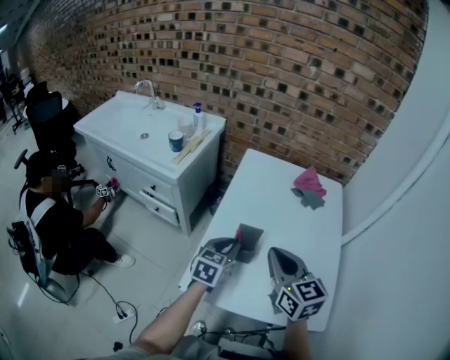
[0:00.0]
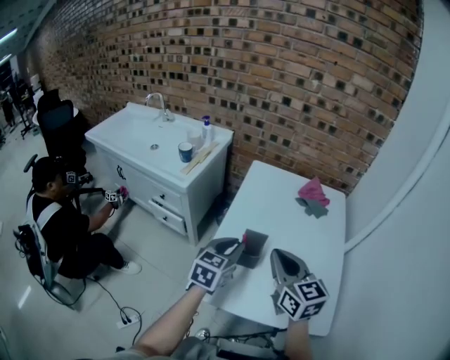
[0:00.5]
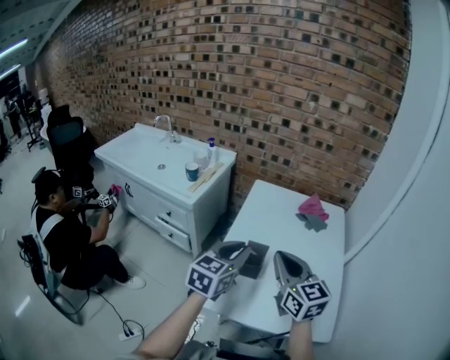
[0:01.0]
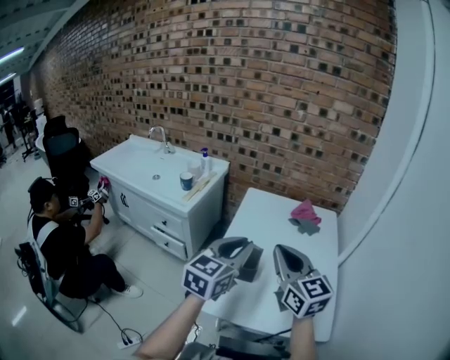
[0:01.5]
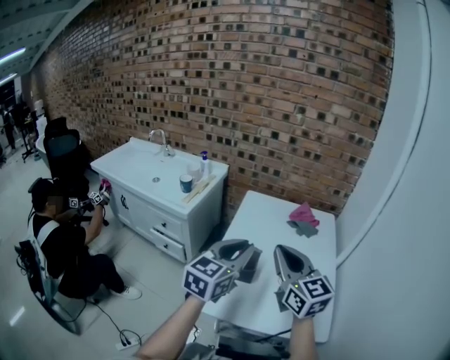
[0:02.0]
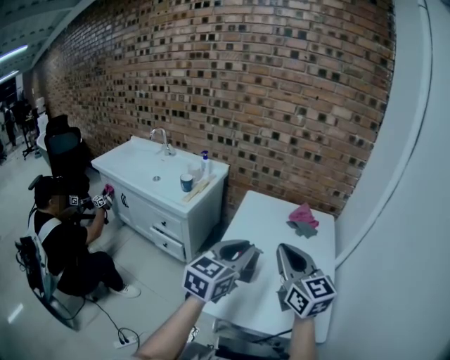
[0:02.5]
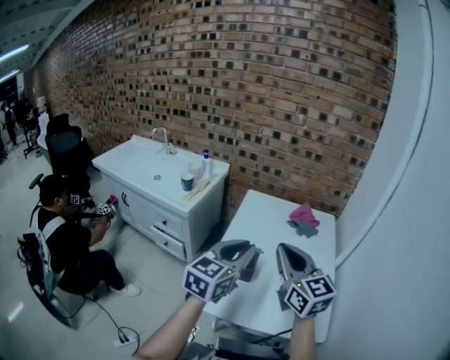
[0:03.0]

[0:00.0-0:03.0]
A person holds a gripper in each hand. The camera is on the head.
0:00.0 to 0:01.5: The left gripper goes approximately 20 cm upward, and turns by some 20 degrees. Meanwhile the right gripper moves upward, roughly 10 cm.
0:01.5 to 0:03.0: The grippers move only a little.

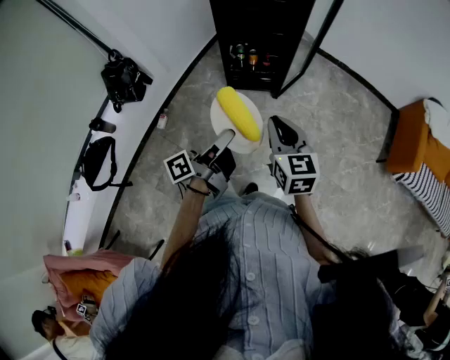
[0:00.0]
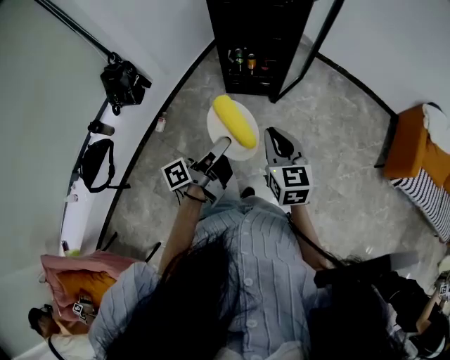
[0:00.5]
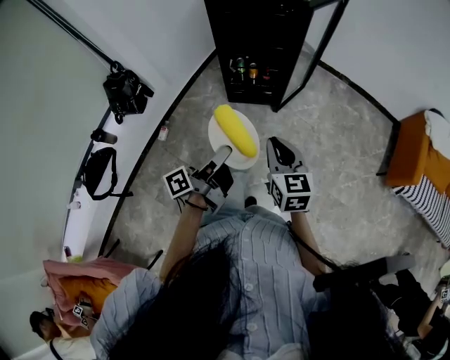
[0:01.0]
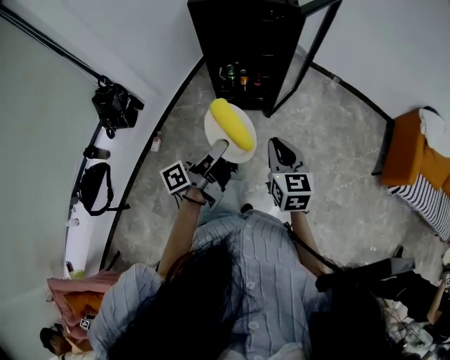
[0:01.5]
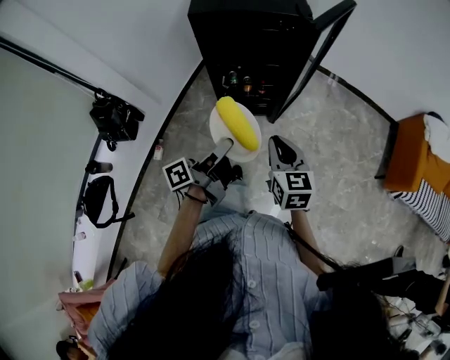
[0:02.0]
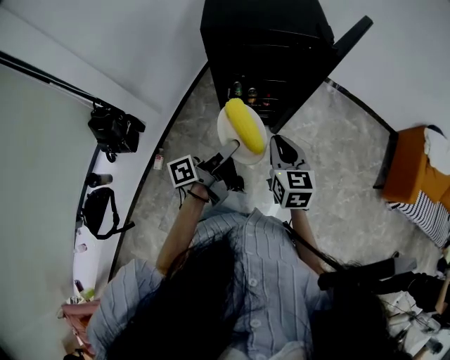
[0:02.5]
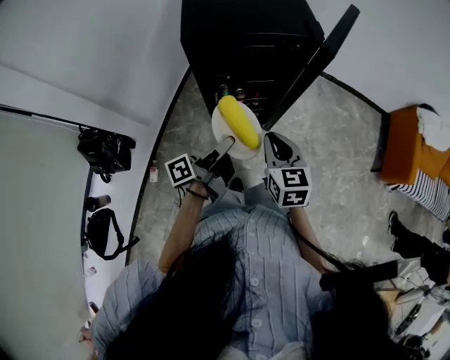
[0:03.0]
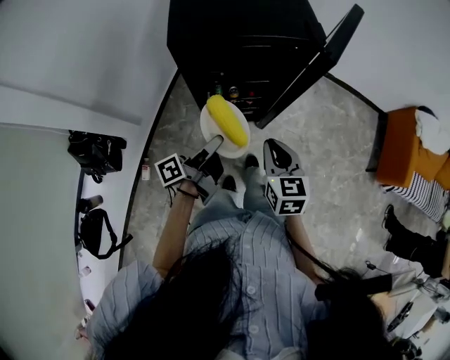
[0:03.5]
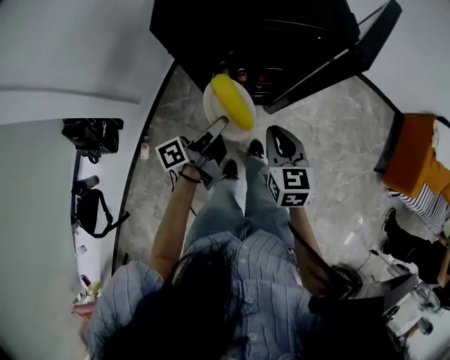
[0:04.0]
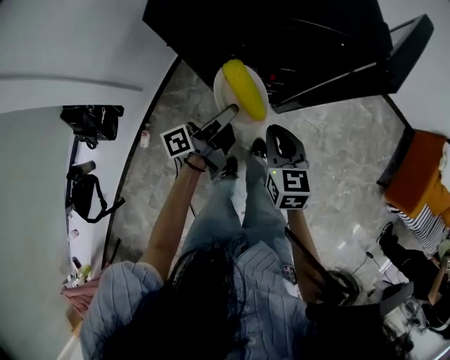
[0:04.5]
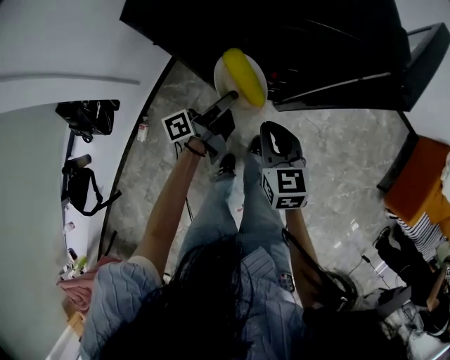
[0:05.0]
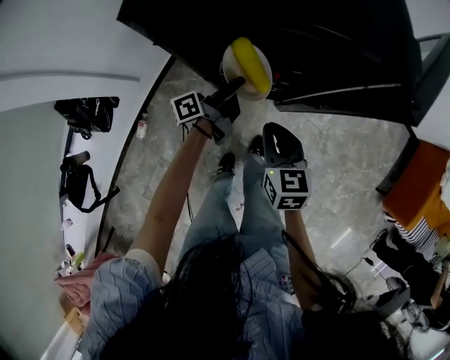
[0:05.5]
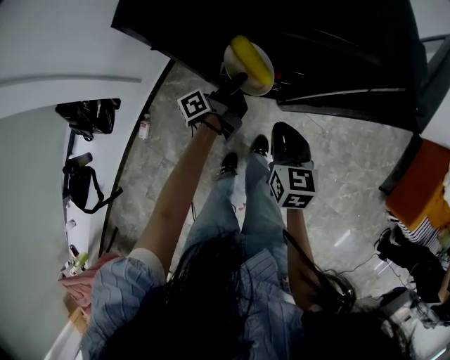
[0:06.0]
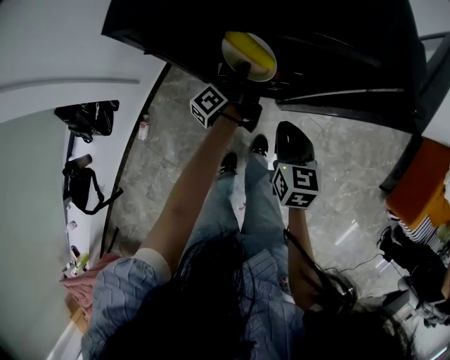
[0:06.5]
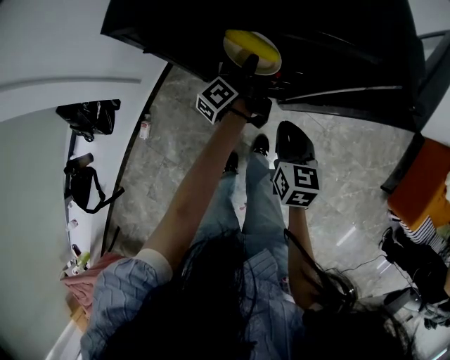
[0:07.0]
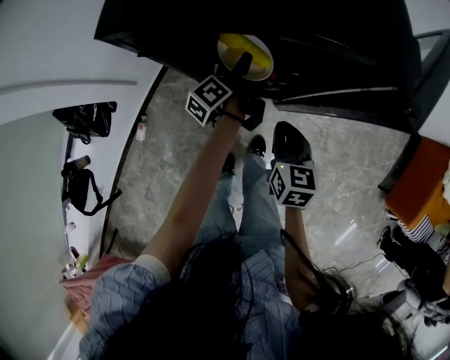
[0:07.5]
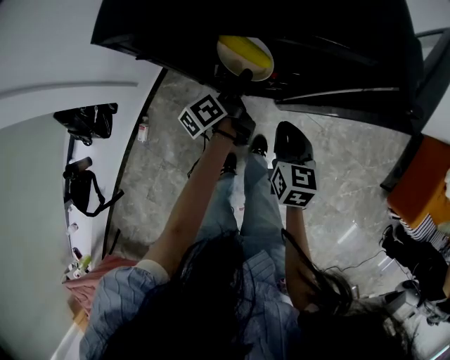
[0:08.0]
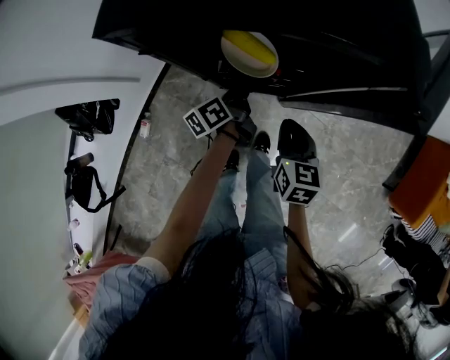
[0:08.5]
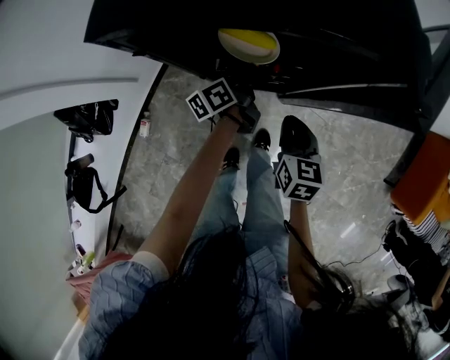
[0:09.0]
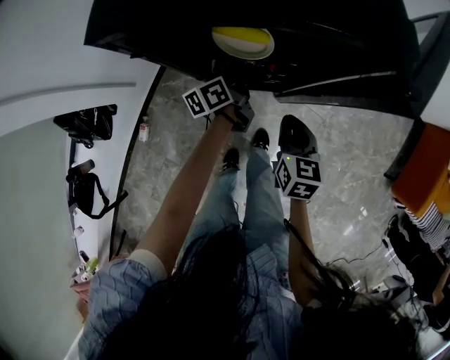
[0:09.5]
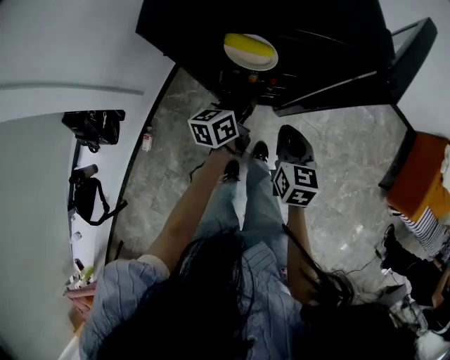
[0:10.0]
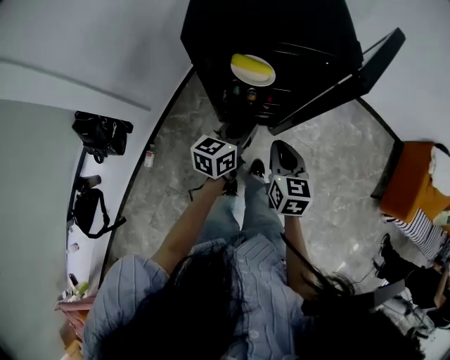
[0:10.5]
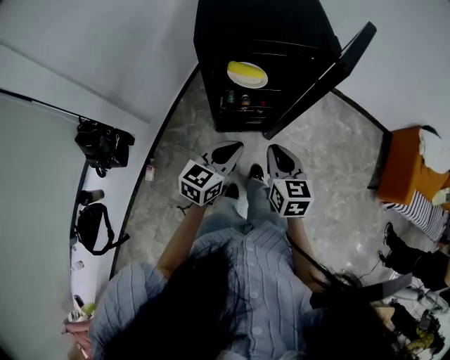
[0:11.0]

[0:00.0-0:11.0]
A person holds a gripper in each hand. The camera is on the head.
0:00.0 to 0:02.0: The grippers both shift forward by roughly 20 cm.
0:02.0 to 0:03.5: The left gripper moves forward and to the left, approximately 20 cm; the right gripper travels forward by some 15 cm.
0:03.5 to 0:05.5: The left gripper moves forward and downward, roughly 25 cm. The right gripper heads downward and forward, covering about 20 cm.
0:05.5 to 0:07.5: The right gripper ends up roughly 5 cm from where it was, while the left gripper goes roughly 5 cm forward, changes its angle by roughly 30 degrees, and opens its fingers.
0:07.5 to 0:09.0: The left gripper swivels approximately 20 degrees, and closes its fingers.
0:09.0 to 0:11.0: The left gripper moves backward and upward, some 35 cm, and rotates around the line of its fingers by roughly 60 degrees, clockwise from behind, while the right gripper travels upward and backward by roughly 25 cm.

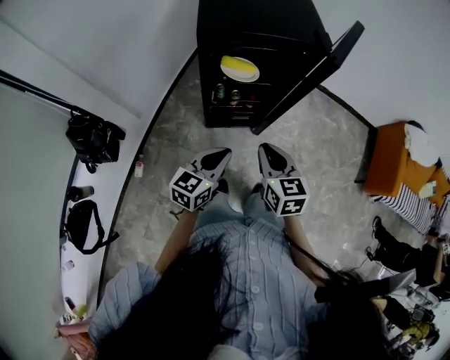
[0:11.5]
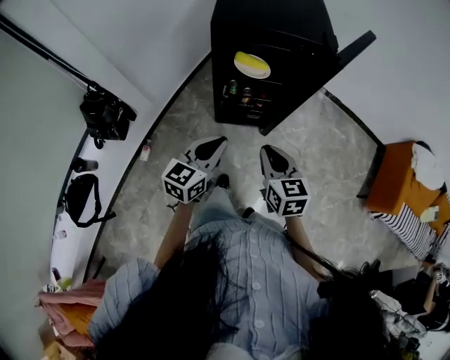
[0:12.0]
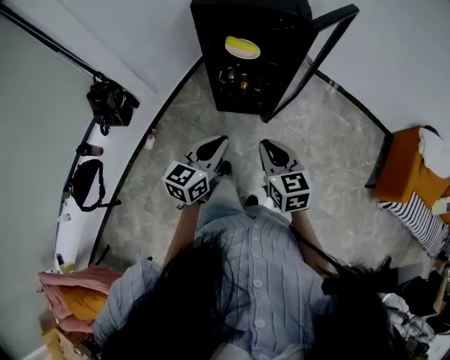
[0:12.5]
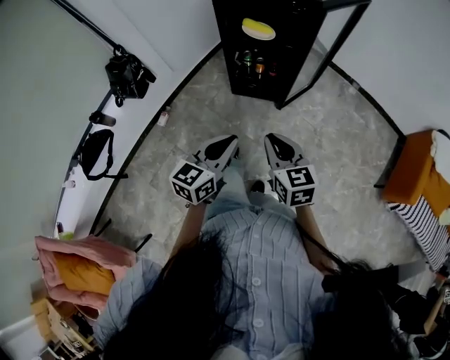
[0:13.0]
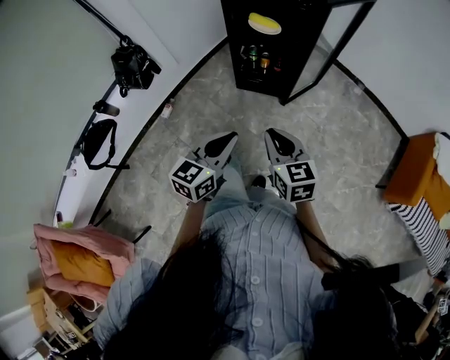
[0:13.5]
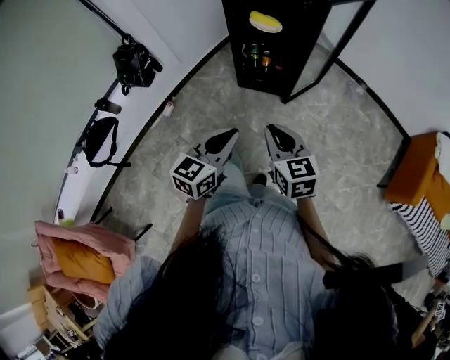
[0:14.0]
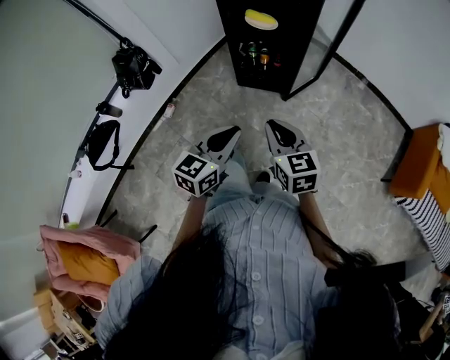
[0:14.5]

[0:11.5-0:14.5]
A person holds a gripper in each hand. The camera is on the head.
0:11.5 to 0:13.0: The grippers both shift backward and to the right by some 25 cm. The right gripper turns by about 20 degrees.
0:13.0 to 0:14.5: There are only small adjustments of the grippers.

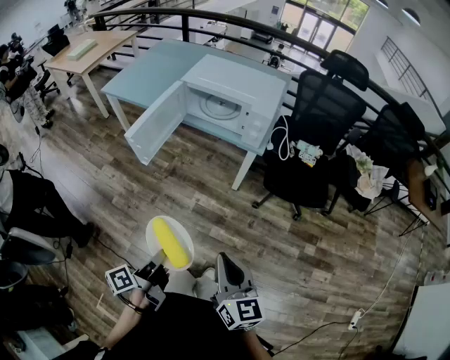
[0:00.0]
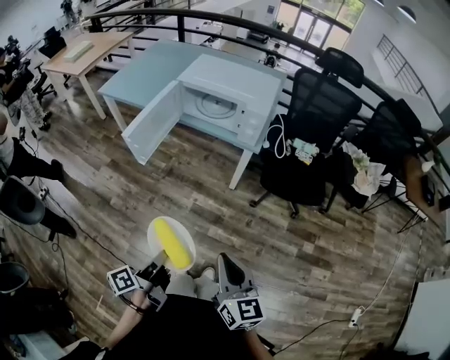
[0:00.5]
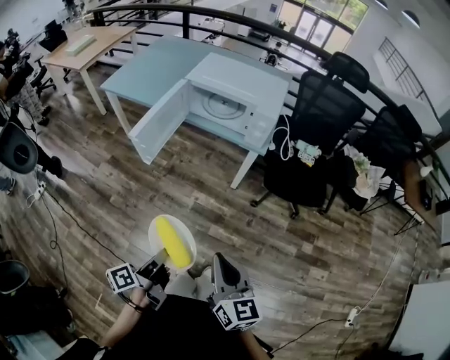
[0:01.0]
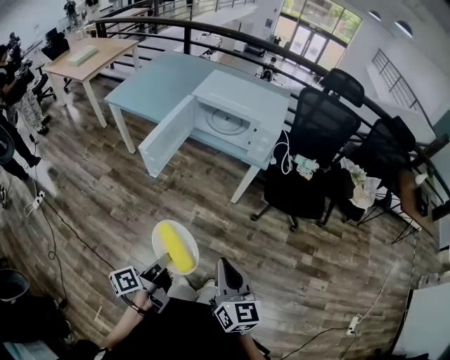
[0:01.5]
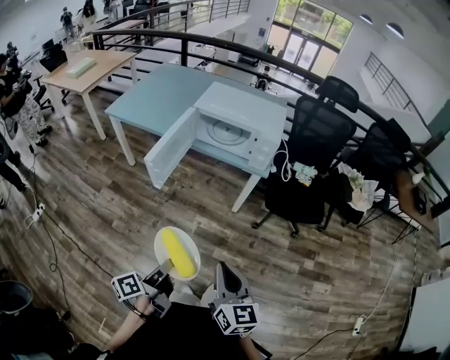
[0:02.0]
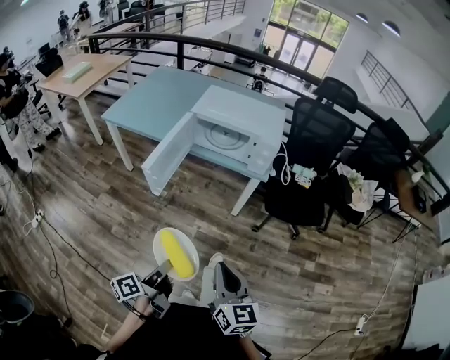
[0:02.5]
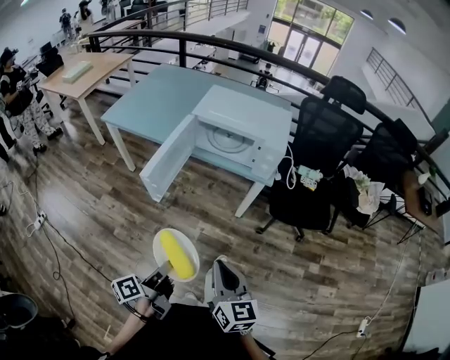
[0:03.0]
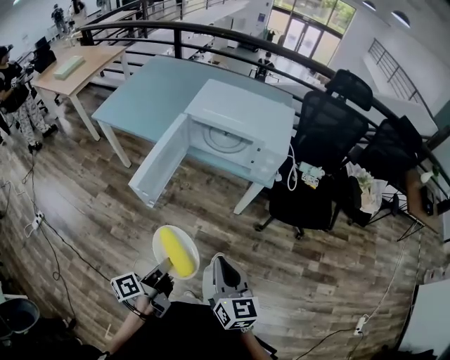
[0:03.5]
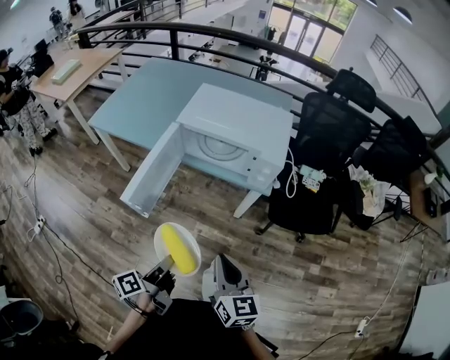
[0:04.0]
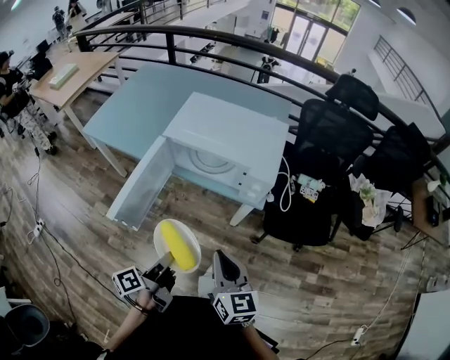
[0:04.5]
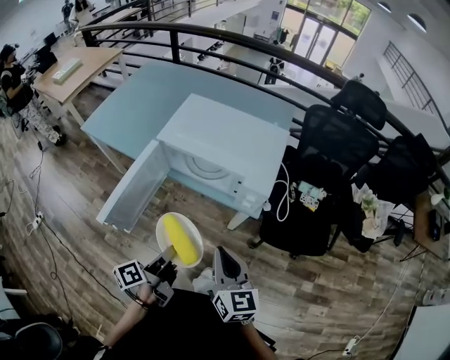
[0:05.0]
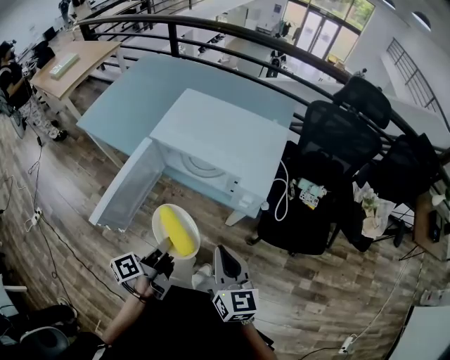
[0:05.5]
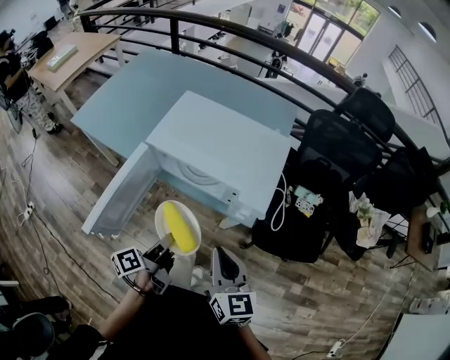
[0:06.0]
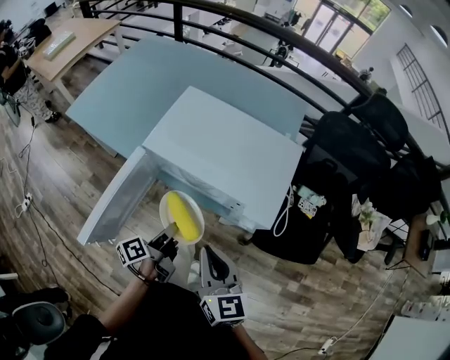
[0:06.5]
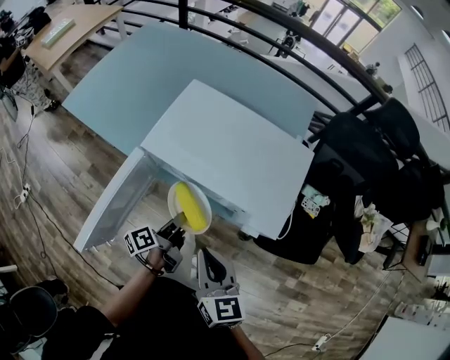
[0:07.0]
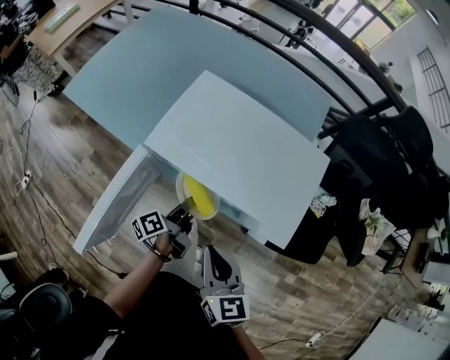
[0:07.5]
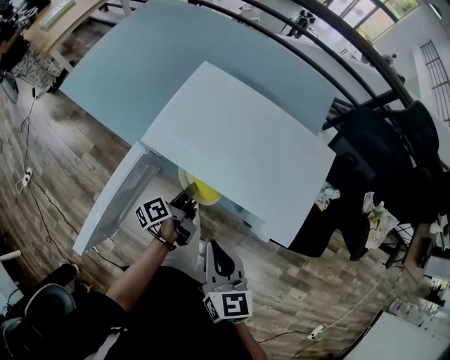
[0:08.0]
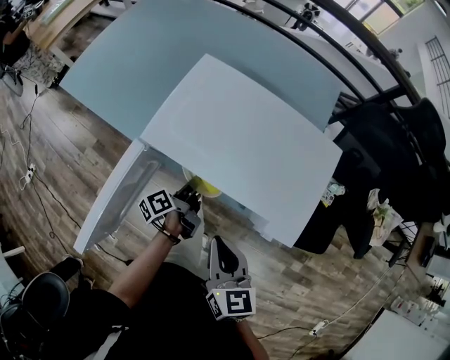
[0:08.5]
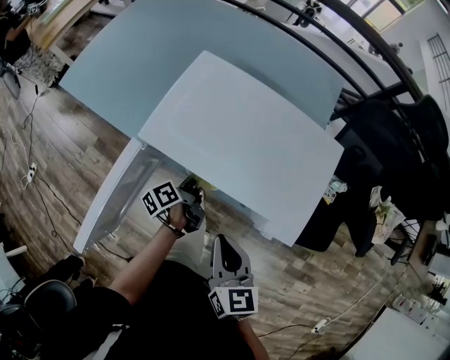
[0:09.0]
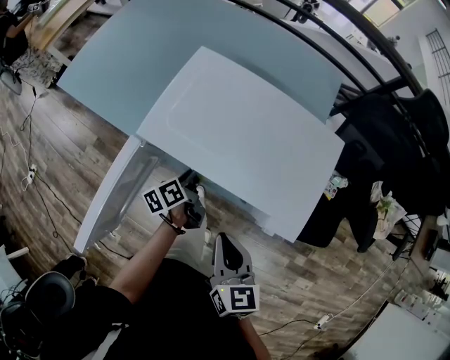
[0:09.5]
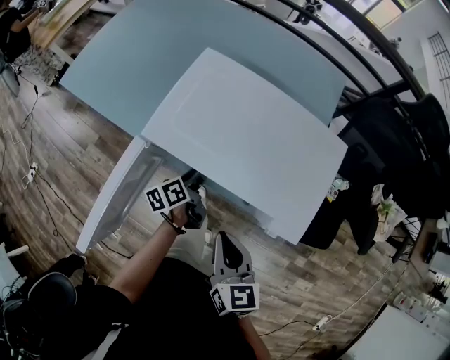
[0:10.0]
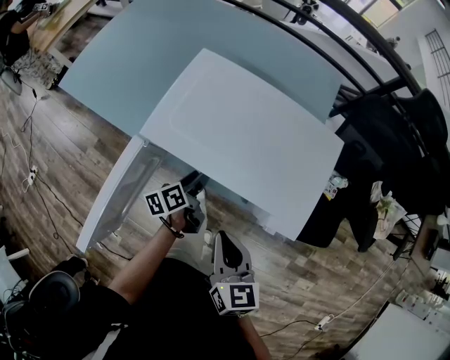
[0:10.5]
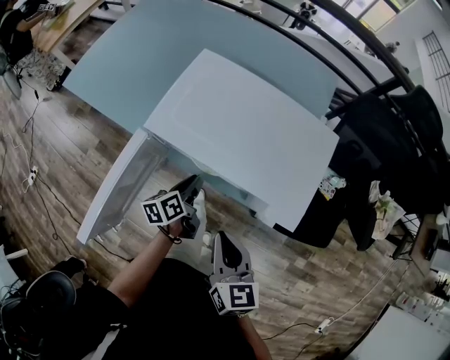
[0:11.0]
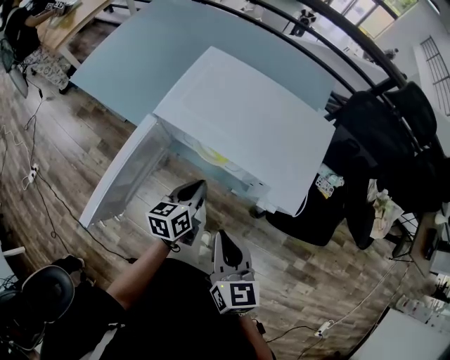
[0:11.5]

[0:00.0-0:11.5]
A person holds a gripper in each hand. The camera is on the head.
0:00.0 to 0:02.0: The grippers both shift to the left by about 10 cm.
0:02.0 to 0:04.0: Both grippers move forward, approximately 20 cm.
0:04.0 to 0:06.0: The right gripper is displaced forward and to the right by roughly 20 cm. The left gripper travels forward by about 20 cm.
0:06.0 to 0:07.5: The left gripper heads forward and downward, covering roughly 20 cm. The right gripper moves forward and to the left, roughly 10 cm.
0:07.5 to 0:09.5: The left gripper travels forward by about 5 cm.
0:09.5 to 0:11.5: The right gripper goes about 5 cm backward, while the left gripper heads backward and upward, covering approximately 10 cm, swivels about 30 degrees, and closes its fingers.
